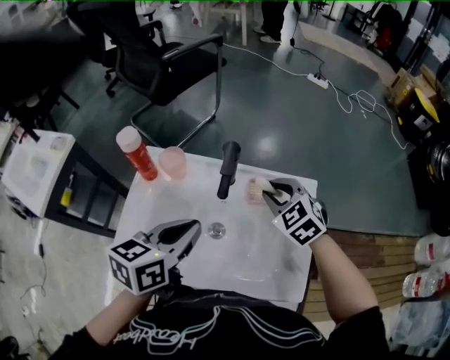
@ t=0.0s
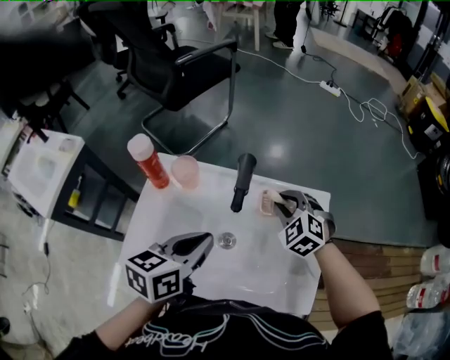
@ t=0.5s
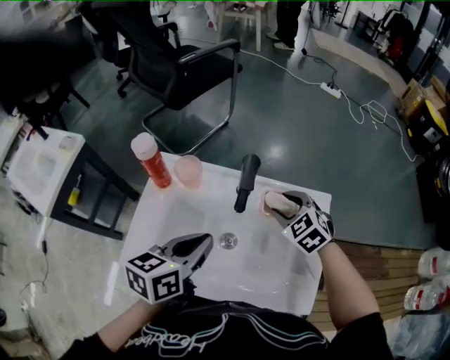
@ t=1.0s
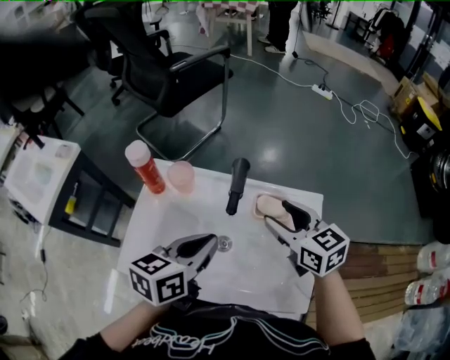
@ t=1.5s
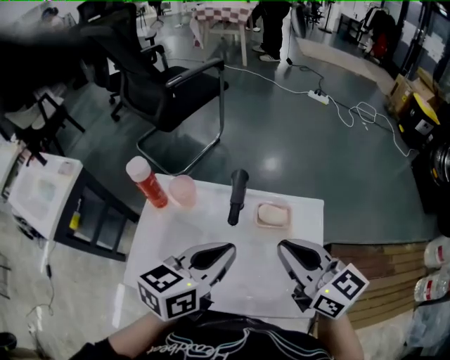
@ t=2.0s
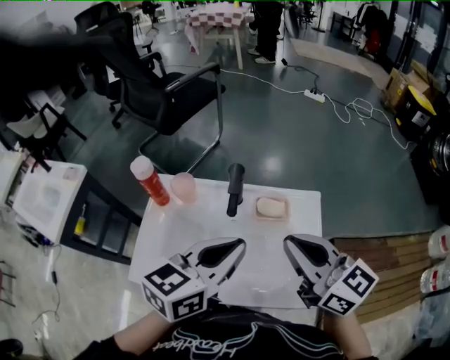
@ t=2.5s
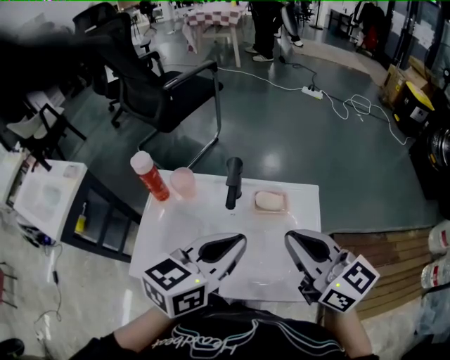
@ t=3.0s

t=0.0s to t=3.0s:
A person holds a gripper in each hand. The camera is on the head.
t=0.0s to t=1.5s: The right gripper changes place by approximately 5 cm, swivels about 40 degrees, and opens.
t=1.5s to t=3.0s: The left gripper moves upward and to the right, roughly 10 cm. The right gripper moves backward and upward, some 15 cm, and closes.

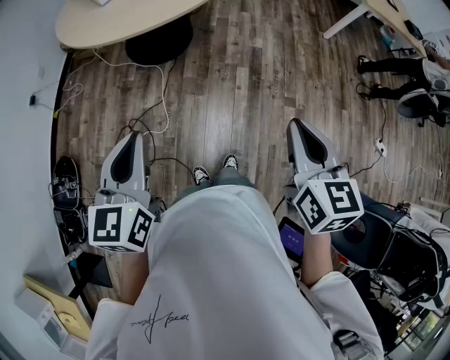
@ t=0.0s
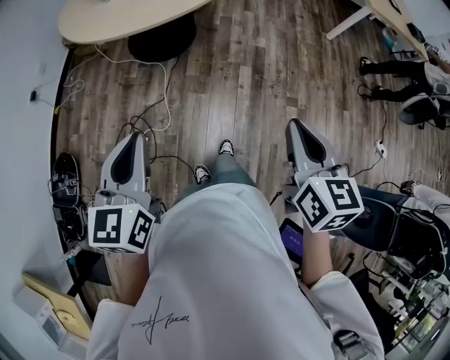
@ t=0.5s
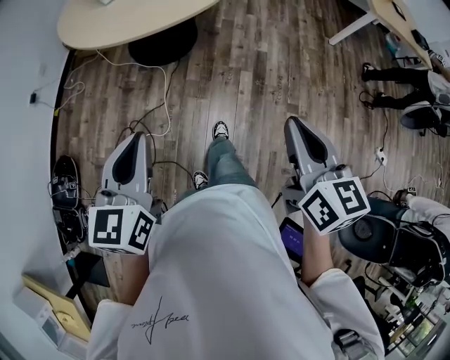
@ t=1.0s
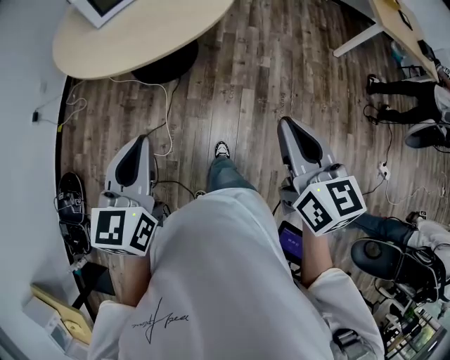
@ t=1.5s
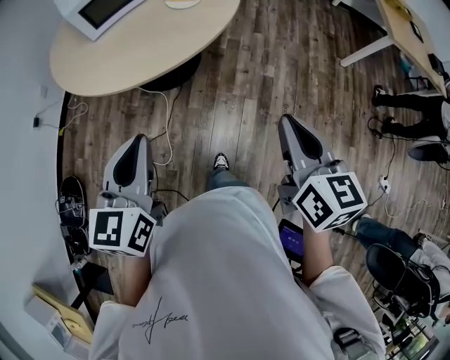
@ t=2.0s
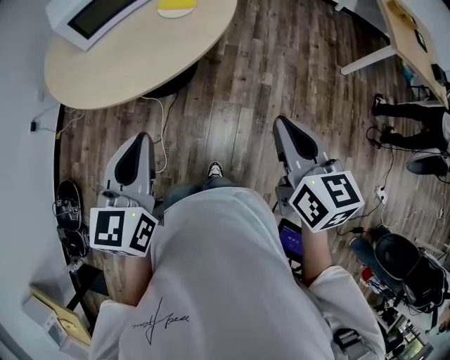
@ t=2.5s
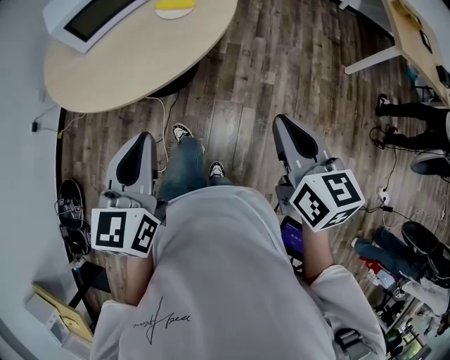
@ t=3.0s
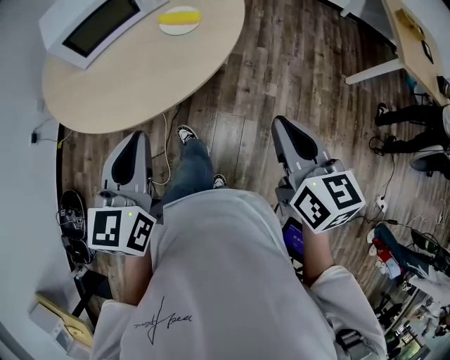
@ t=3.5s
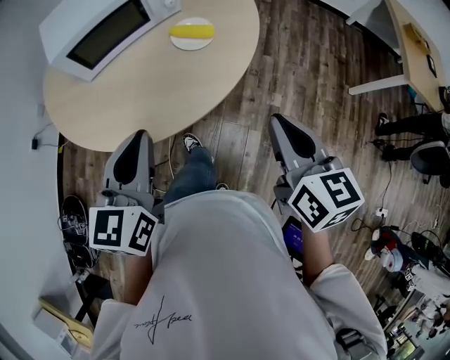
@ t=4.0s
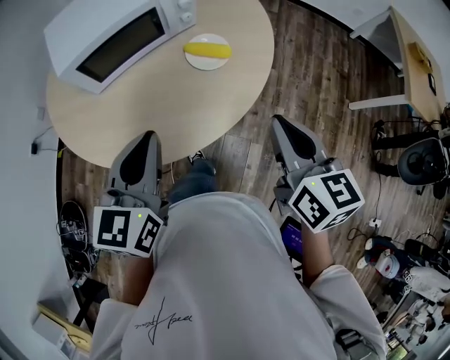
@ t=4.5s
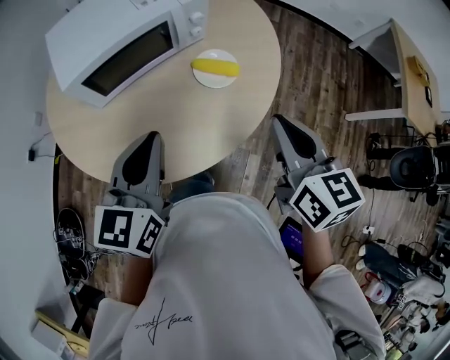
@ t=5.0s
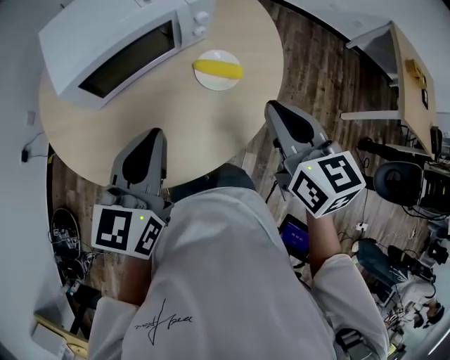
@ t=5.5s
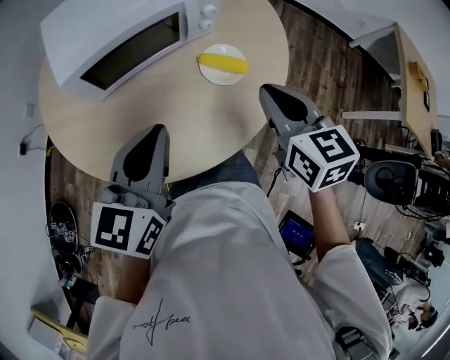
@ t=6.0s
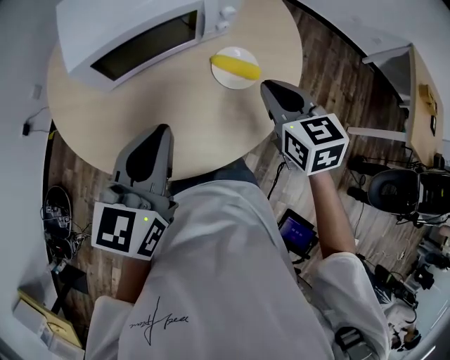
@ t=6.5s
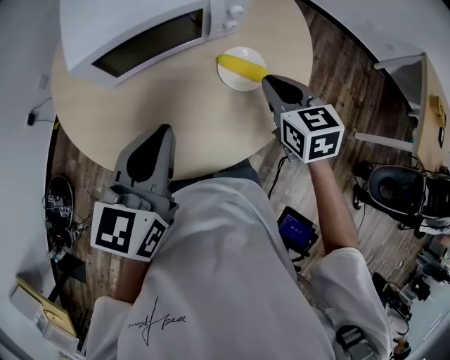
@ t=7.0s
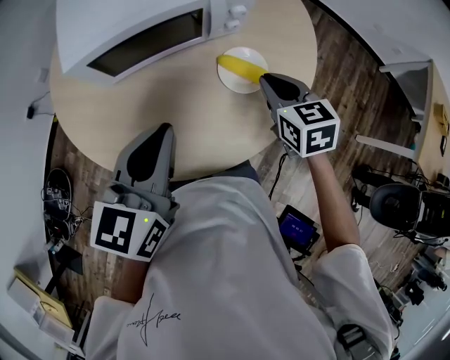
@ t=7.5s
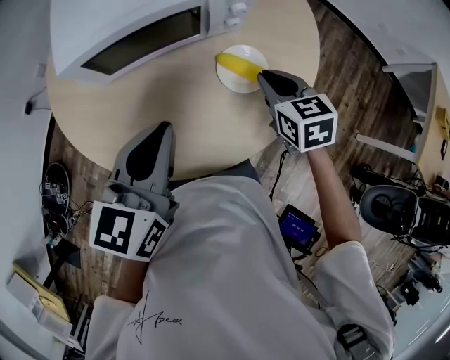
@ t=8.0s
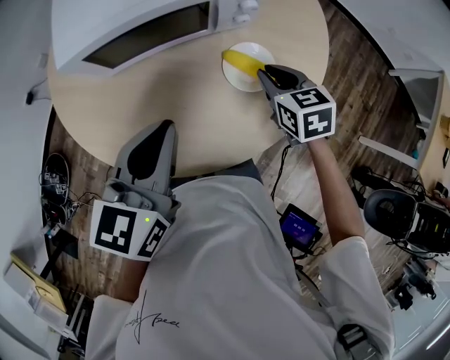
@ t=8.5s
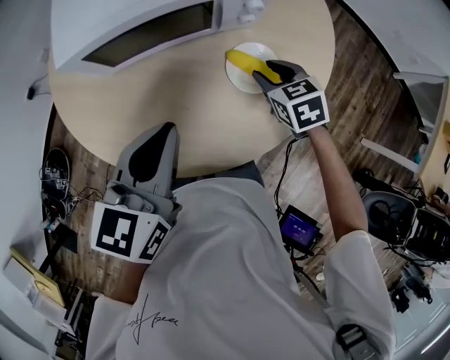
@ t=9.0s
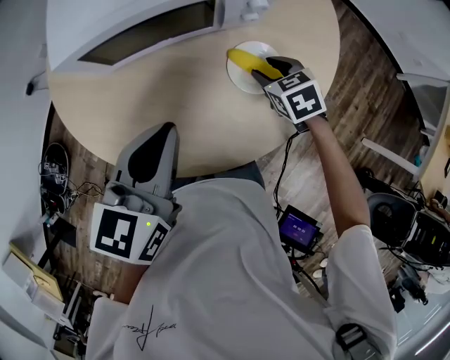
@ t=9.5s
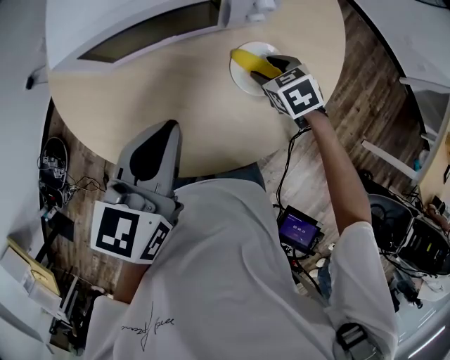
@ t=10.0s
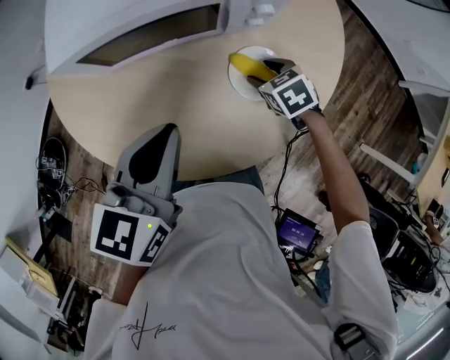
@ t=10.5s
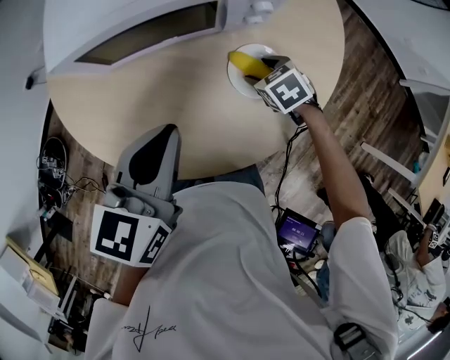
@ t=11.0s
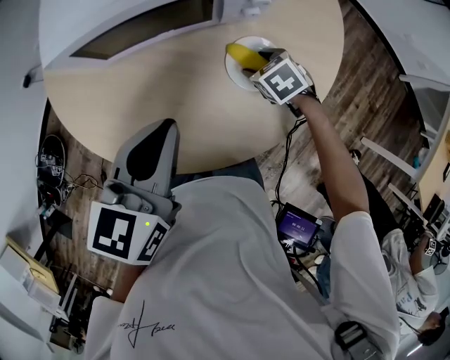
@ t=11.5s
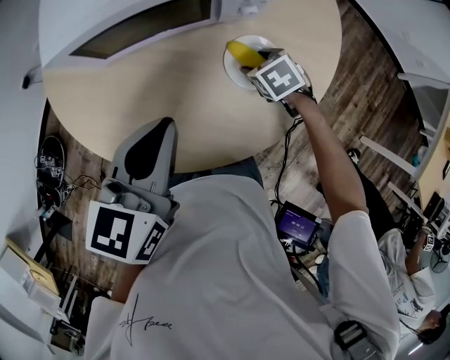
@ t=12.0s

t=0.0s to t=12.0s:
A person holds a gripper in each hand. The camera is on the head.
t=0.0s to t=2.0s: The grippers both shift forward by some 30 cm.
t=2.0s to t=4.0s: Both grippers move forward, some 25 cm.
t=4.0s to t=6.0s: The grippers both shift forward and to the left by roughly 20 cm.
t=6.0s to t=8.0s: The right gripper heads downward and forward, covering some 15 cm. Meanwhile the left gripper ends up about 5 cm from where it was.
t=8.0s to t=10.0s: The right gripper moves downward and forward, some 15 cm, changes its angle by approximately 30 degrees, and opens.
t=10.0s to t=12.0s: The grippers stay close to where they were, moving slightly.

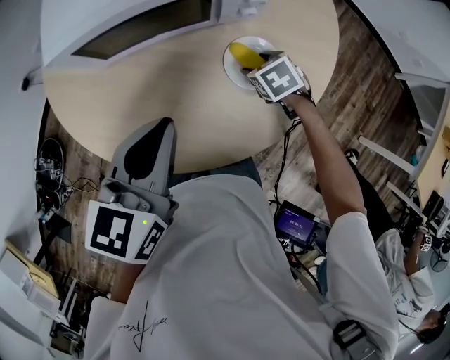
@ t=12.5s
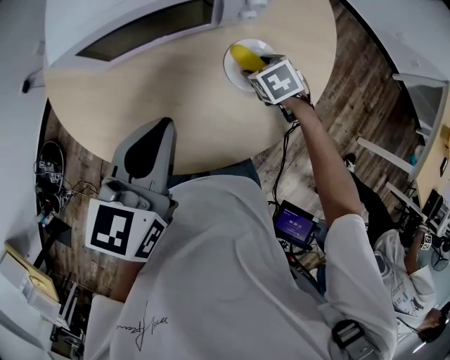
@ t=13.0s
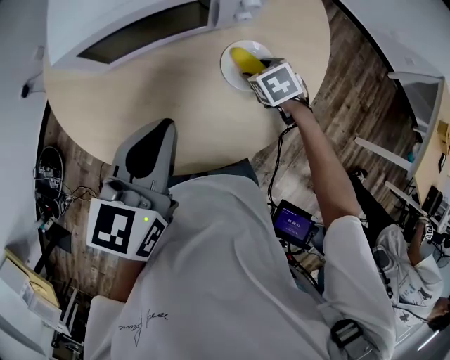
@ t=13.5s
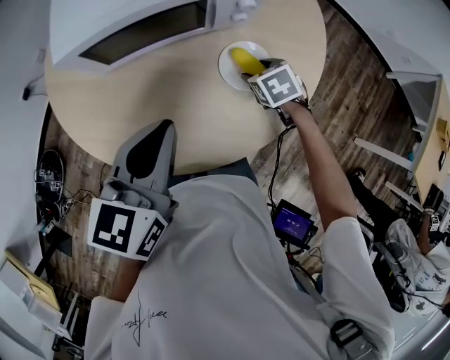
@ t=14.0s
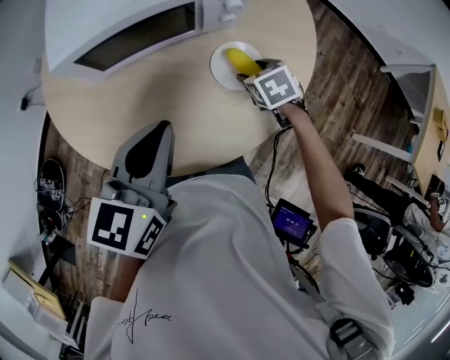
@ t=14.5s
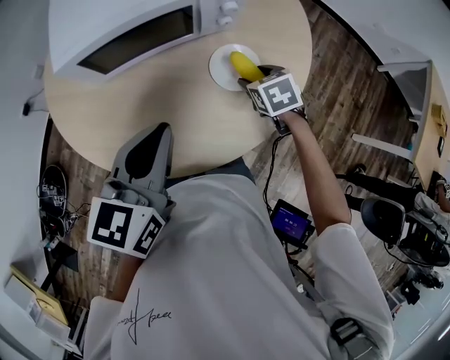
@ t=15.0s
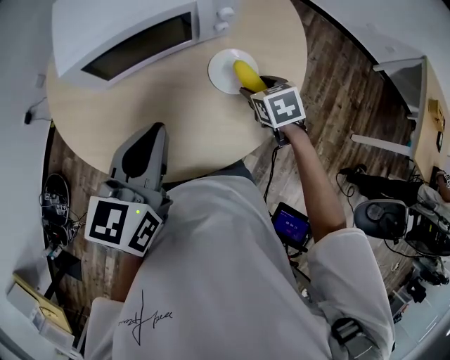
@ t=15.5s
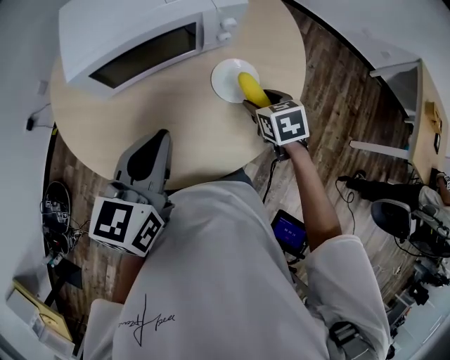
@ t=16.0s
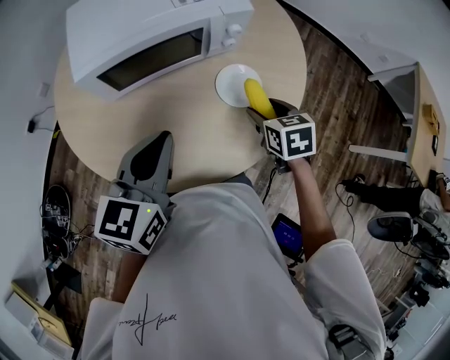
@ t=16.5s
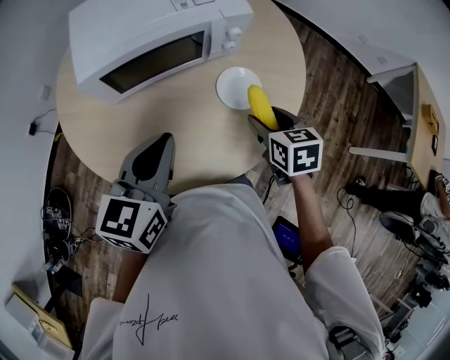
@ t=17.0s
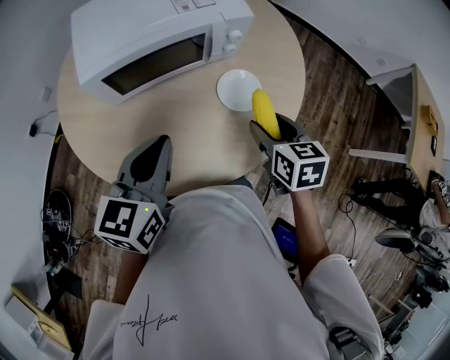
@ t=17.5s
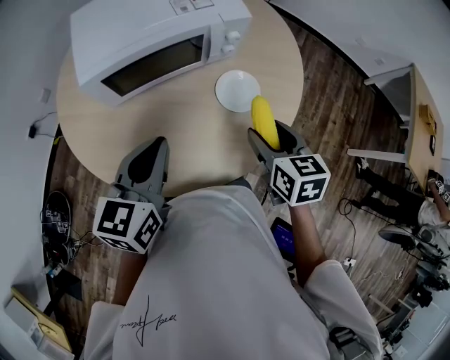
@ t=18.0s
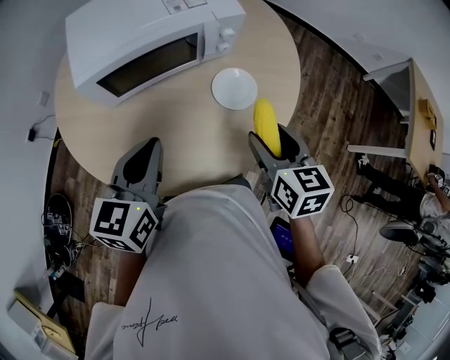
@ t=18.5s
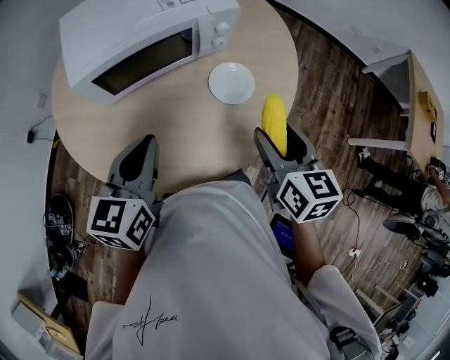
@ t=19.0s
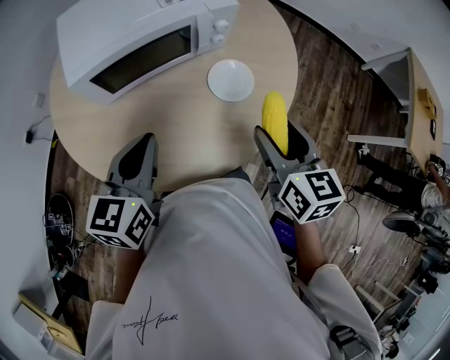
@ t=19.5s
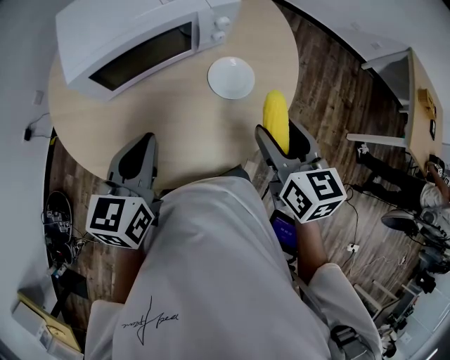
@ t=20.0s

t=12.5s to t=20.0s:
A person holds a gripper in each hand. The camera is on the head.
t=12.5s to t=14.5s: The right gripper shifts by approximately 5 cm.
t=14.5s to t=16.5s: The right gripper heads upward and backward, covering approximately 10 cm, and swivels approximately 20 degrees.
t=16.5s to t=18.0s: The right gripper heads upward and backward, covering some 10 cm.
t=18.0s to t=20.0s: The right gripper heads upward, covering about 5 cm.

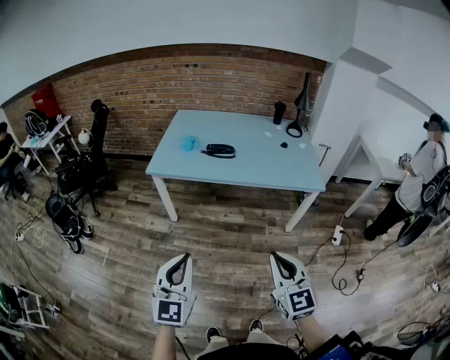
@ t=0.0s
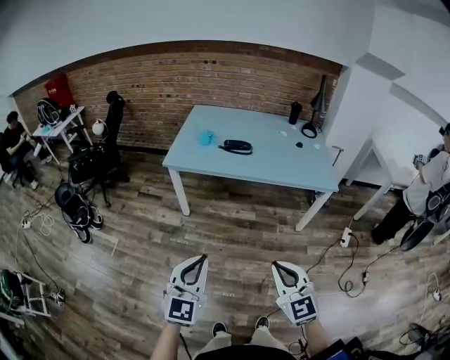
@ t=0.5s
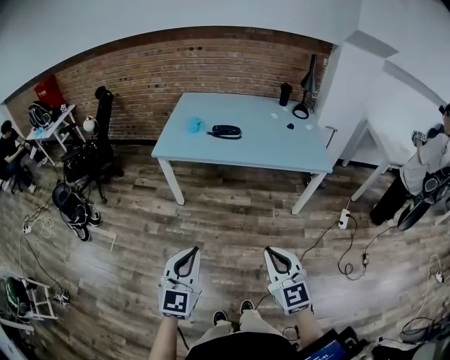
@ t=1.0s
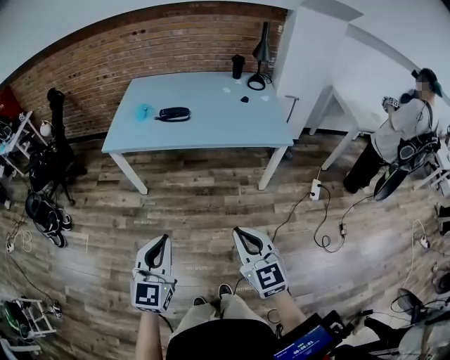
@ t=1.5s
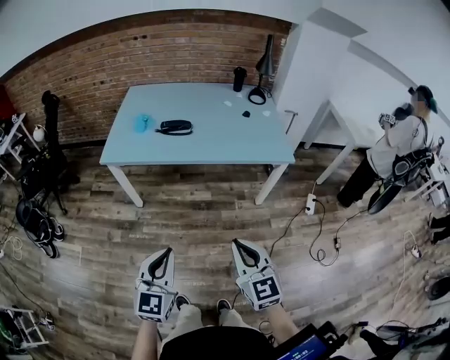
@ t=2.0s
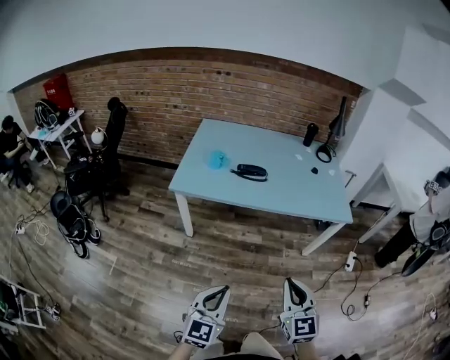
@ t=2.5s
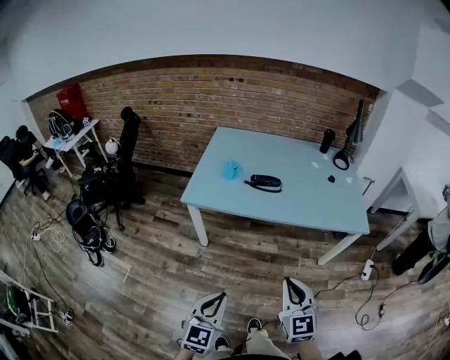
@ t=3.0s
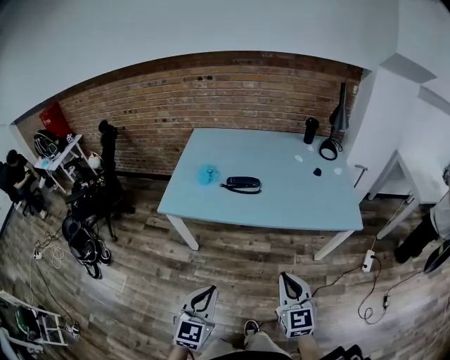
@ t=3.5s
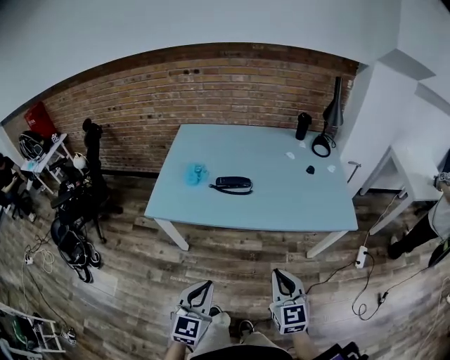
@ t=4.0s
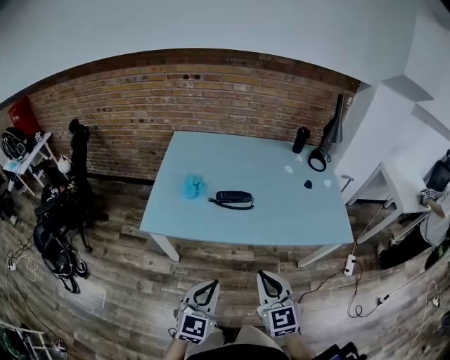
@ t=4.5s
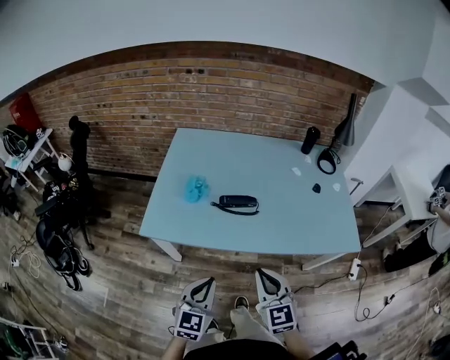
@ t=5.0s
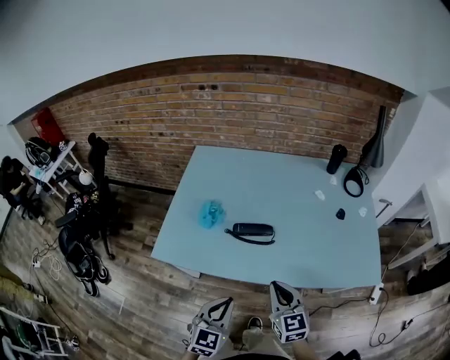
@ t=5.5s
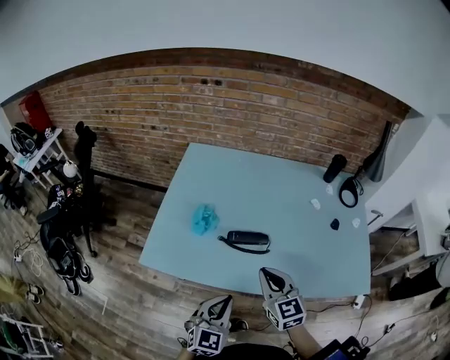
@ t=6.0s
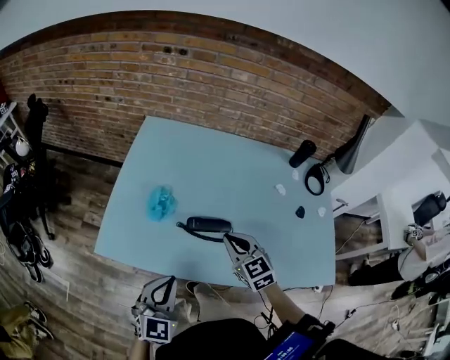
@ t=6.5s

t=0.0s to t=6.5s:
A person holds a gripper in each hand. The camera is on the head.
t=0.0s to t=2.0s: The left gripper moves to the right, downward and forward, roughly 10 cm. The right gripper swings left and right, some 10 cm each way, with 2 reversals.
t=2.0s to t=4.5s: The left gripper shifts about 30 cm forward; the right gripper goes some 35 cm forward and to the left.
t=4.5s to t=6.5s: The right gripper moves forward, roughly 35 cm, and changes its angle by about 20 degrees. The left gripper moves forward, some 25 cm.
